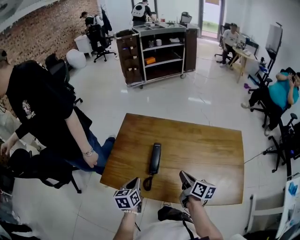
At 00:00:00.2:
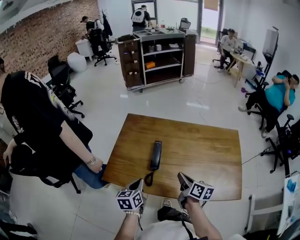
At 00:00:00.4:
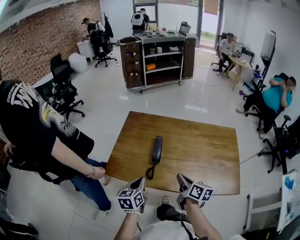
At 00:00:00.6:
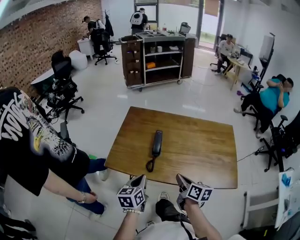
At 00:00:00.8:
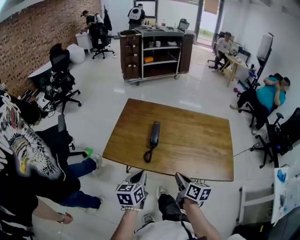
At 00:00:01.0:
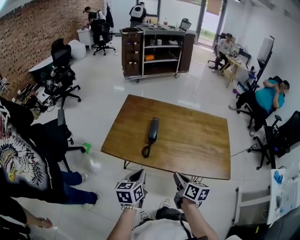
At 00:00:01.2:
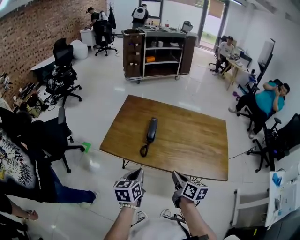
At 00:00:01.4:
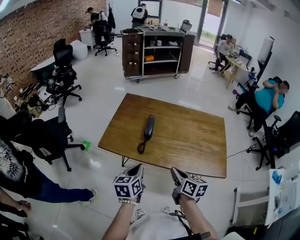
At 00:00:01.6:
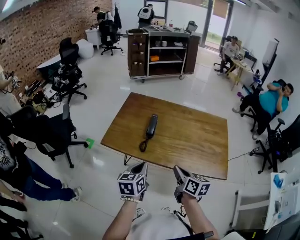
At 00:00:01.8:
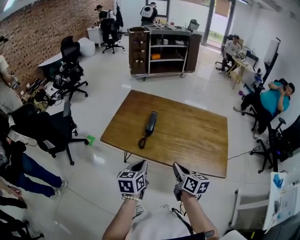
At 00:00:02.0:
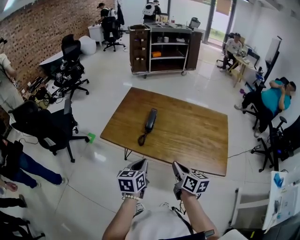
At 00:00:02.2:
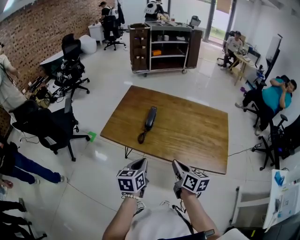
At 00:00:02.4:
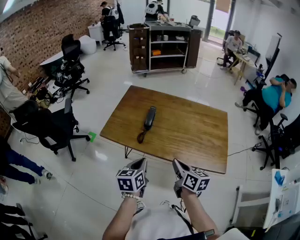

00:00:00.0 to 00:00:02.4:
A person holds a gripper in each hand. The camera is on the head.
00:00:00.0 to 00:00:01.2: Both grippers move backward, about 20 cm.
00:00:01.2 to 00:00:02.4: The left gripper shifts some 5 cm to the right.

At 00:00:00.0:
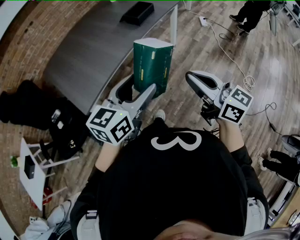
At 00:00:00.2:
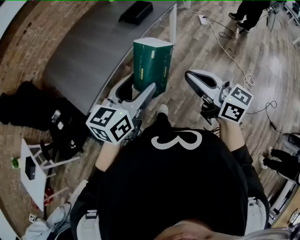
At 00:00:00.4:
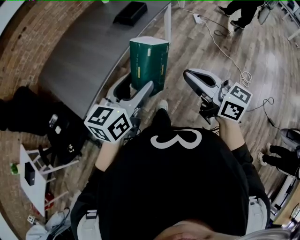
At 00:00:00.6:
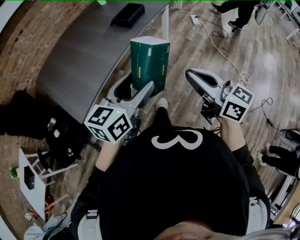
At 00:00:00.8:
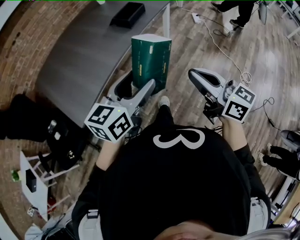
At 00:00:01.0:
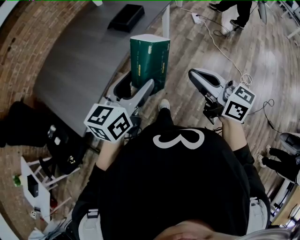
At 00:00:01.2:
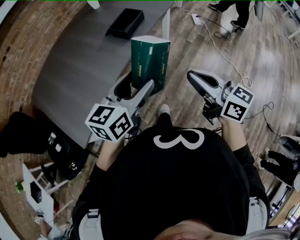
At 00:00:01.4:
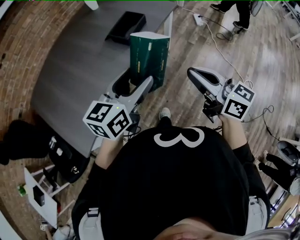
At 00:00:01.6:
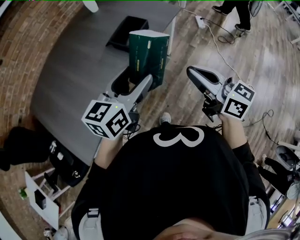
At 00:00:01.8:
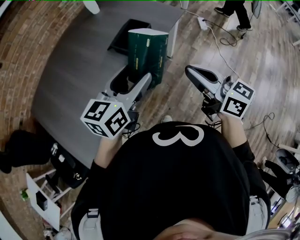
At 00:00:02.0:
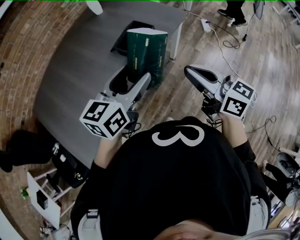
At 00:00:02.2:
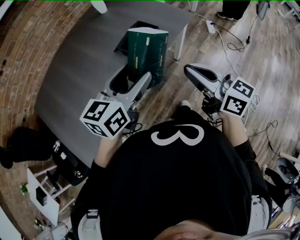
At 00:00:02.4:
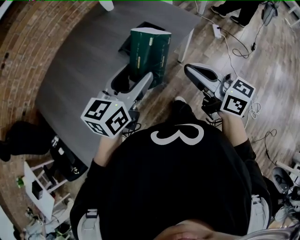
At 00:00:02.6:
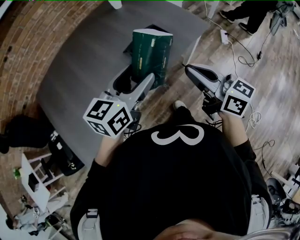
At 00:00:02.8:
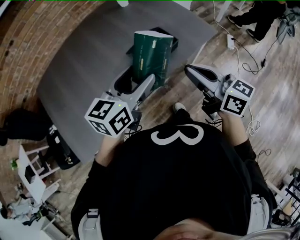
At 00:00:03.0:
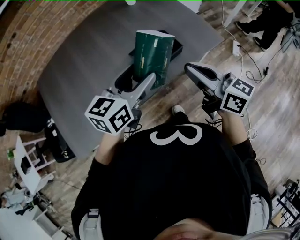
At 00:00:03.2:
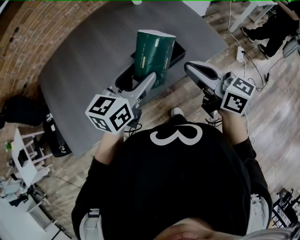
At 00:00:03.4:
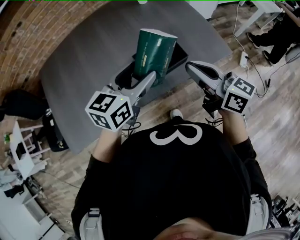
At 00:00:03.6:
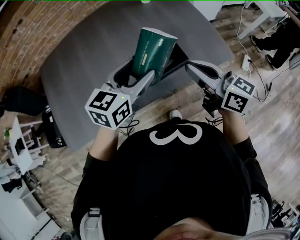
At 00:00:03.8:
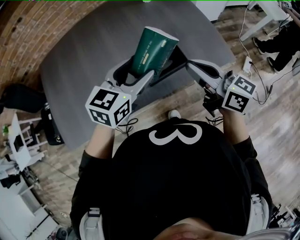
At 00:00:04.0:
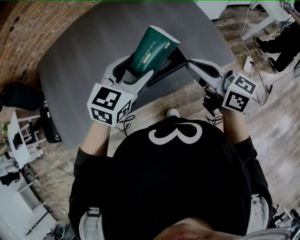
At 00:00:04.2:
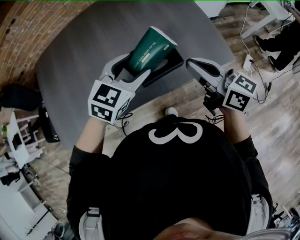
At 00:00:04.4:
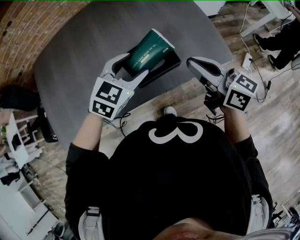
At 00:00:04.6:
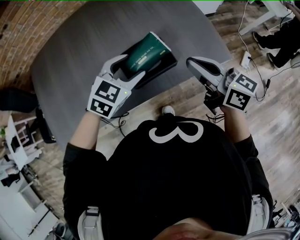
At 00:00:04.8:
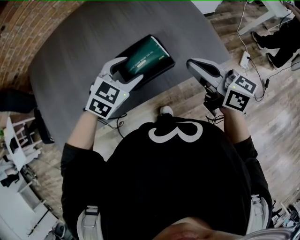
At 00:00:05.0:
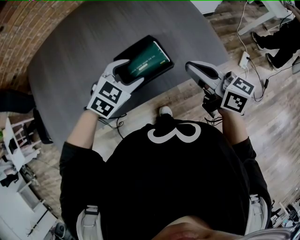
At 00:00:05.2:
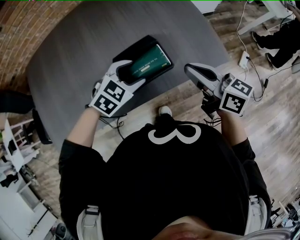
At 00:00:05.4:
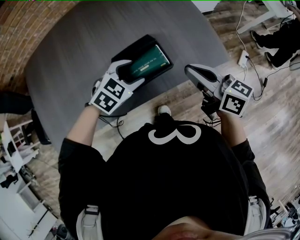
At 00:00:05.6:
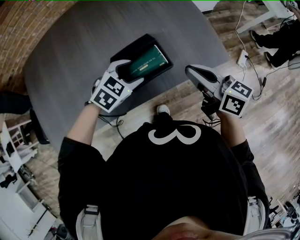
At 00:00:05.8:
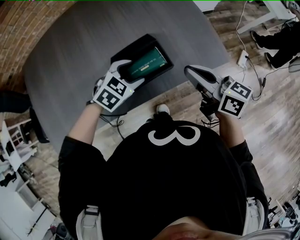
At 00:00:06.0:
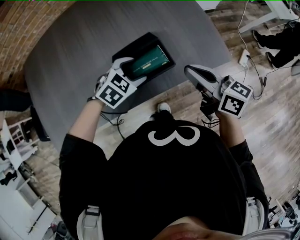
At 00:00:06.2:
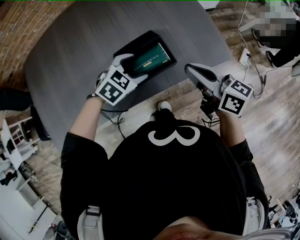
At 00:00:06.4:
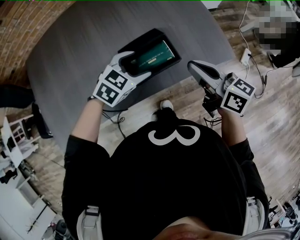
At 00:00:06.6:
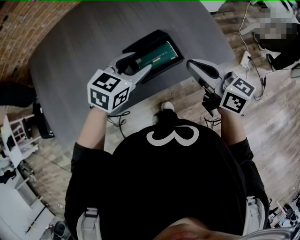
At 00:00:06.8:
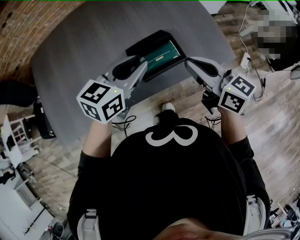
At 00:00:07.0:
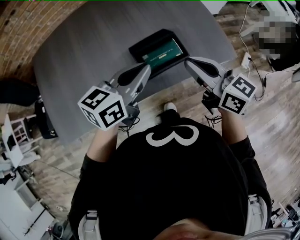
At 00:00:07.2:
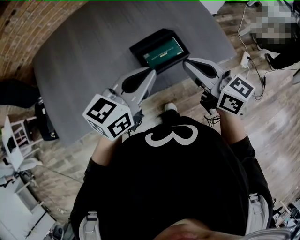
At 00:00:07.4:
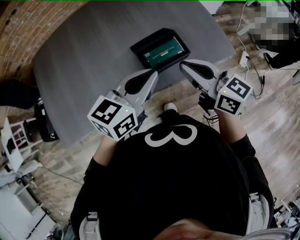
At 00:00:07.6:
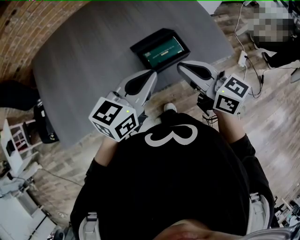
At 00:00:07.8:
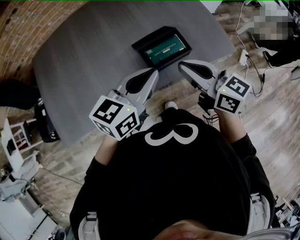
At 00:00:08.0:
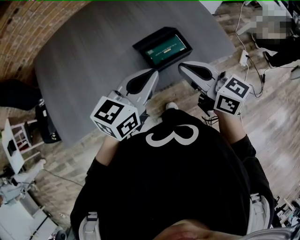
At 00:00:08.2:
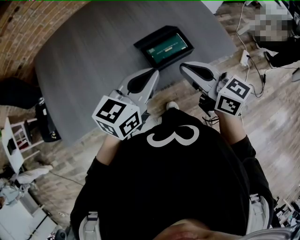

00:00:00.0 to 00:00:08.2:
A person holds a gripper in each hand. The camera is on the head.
00:00:00.0 to 00:00:01.6: Both grippers move forward, roughly 30 cm.
00:00:01.6 to 00:00:03.2: The grippers both shift forward by about 20 cm. The right gripper turns by roughly 30 degrees. Meanwhile the left gripper turns by some 20 degrees.
00:00:03.2 to 00:00:05.0: The left gripper heads downward and forward, covering roughly 15 cm, and turns by approximately 40 degrees. The right gripper goes some 10 cm forward, downward and to the right.
00:00:05.0 to 00:00:06.6: The left gripper rotates some 20 degrees.
00:00:06.6 to 00:00:08.2: The right gripper travels to the left and backward by roughly 10 cm, while the left gripper heads backward and upward, covering roughly 10 cm, changes its angle by approximately 20 degrees, and closes its fingers.

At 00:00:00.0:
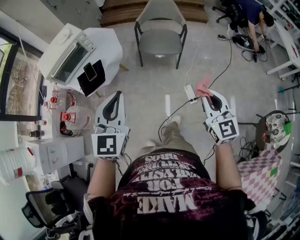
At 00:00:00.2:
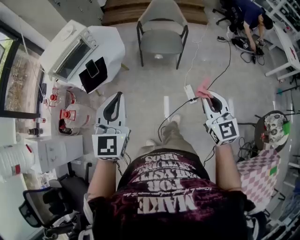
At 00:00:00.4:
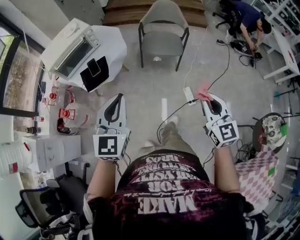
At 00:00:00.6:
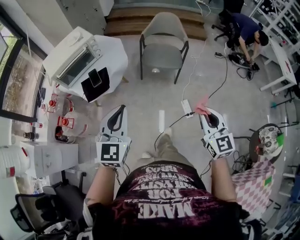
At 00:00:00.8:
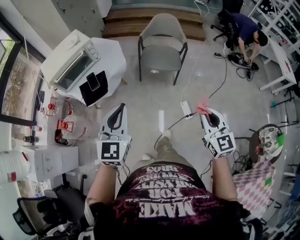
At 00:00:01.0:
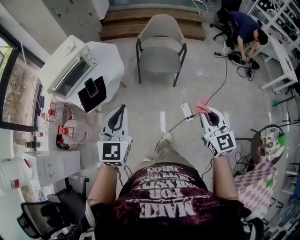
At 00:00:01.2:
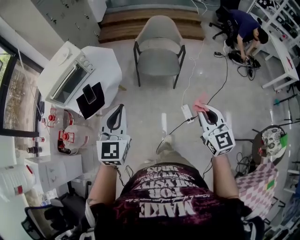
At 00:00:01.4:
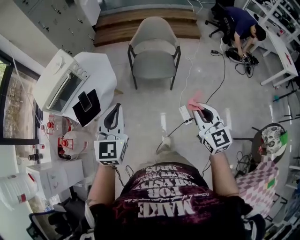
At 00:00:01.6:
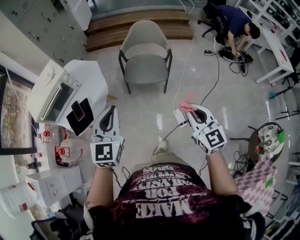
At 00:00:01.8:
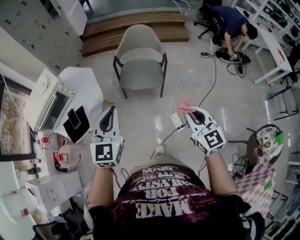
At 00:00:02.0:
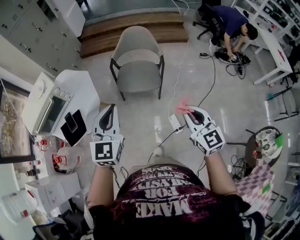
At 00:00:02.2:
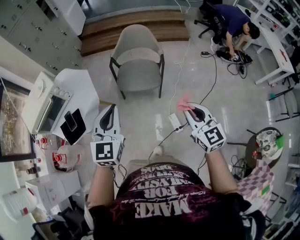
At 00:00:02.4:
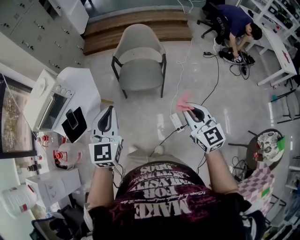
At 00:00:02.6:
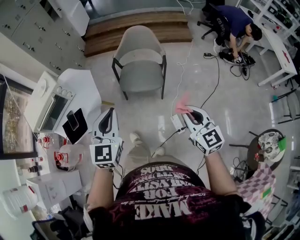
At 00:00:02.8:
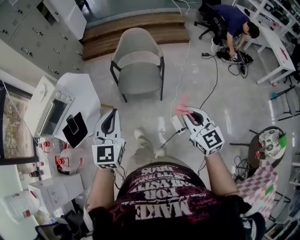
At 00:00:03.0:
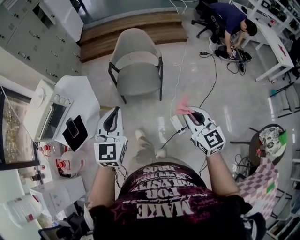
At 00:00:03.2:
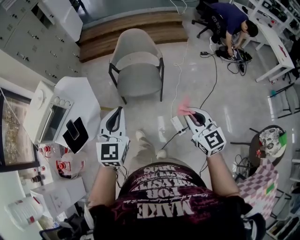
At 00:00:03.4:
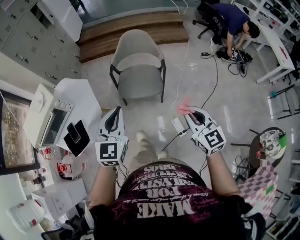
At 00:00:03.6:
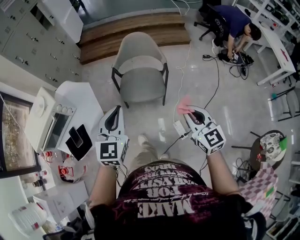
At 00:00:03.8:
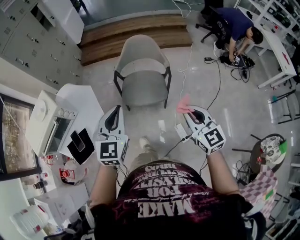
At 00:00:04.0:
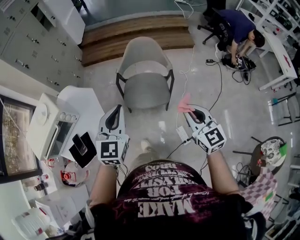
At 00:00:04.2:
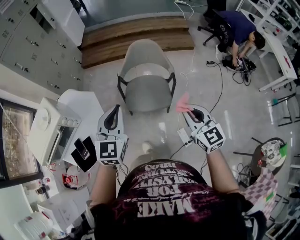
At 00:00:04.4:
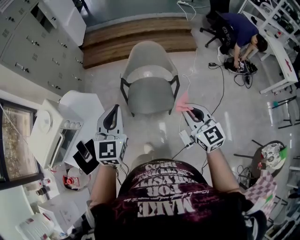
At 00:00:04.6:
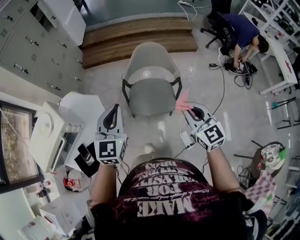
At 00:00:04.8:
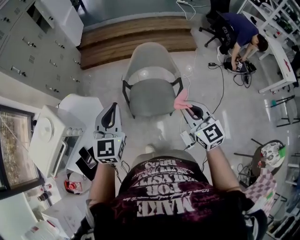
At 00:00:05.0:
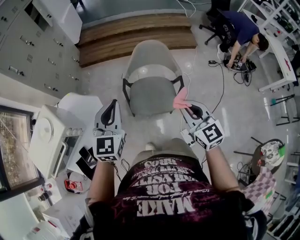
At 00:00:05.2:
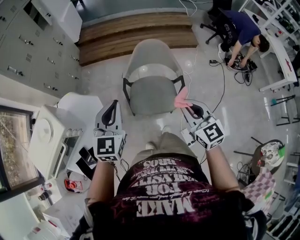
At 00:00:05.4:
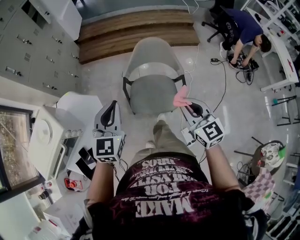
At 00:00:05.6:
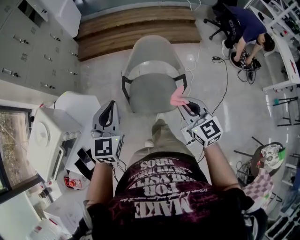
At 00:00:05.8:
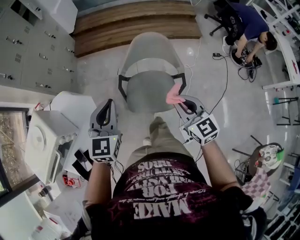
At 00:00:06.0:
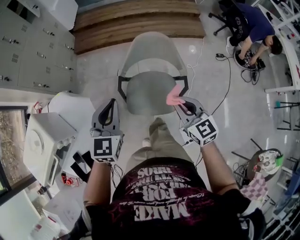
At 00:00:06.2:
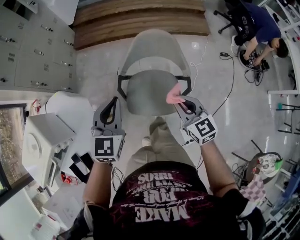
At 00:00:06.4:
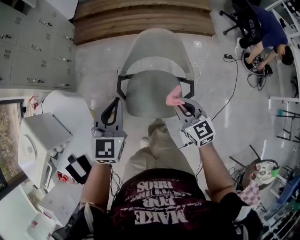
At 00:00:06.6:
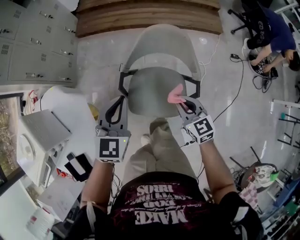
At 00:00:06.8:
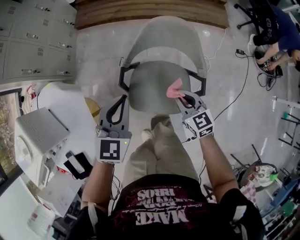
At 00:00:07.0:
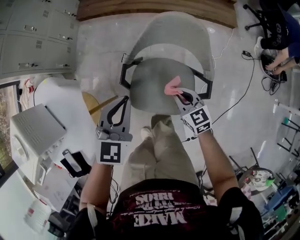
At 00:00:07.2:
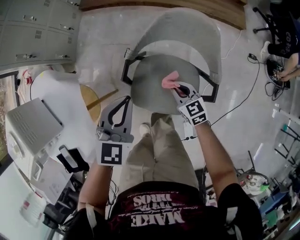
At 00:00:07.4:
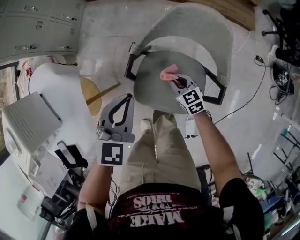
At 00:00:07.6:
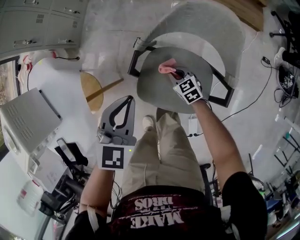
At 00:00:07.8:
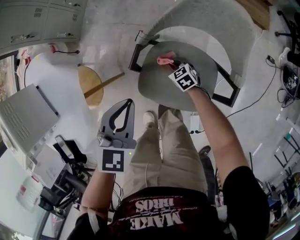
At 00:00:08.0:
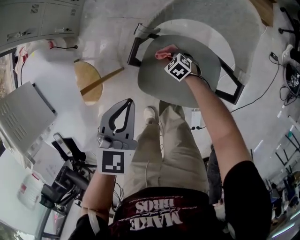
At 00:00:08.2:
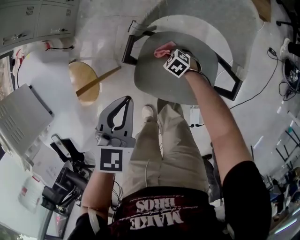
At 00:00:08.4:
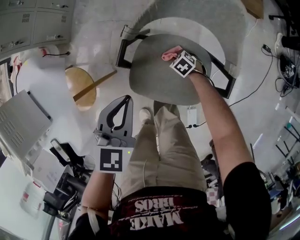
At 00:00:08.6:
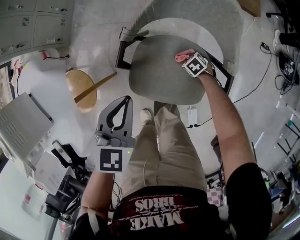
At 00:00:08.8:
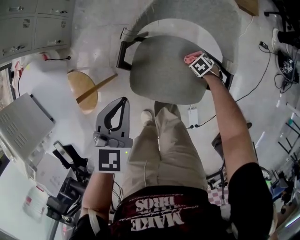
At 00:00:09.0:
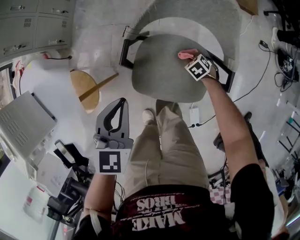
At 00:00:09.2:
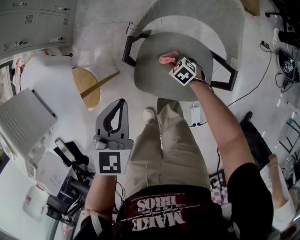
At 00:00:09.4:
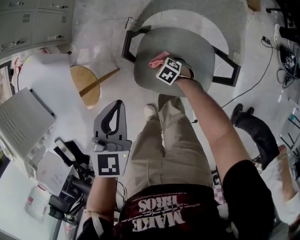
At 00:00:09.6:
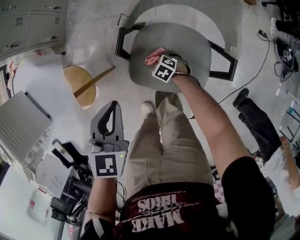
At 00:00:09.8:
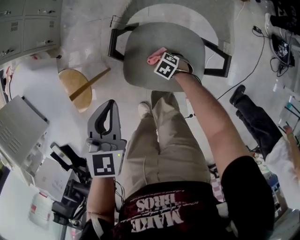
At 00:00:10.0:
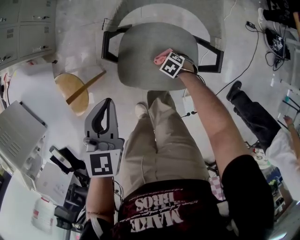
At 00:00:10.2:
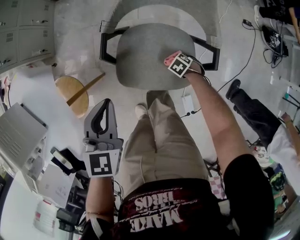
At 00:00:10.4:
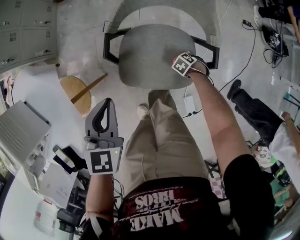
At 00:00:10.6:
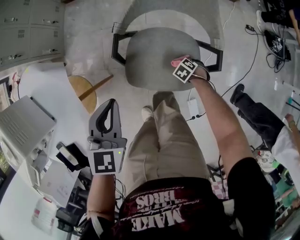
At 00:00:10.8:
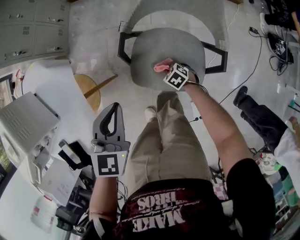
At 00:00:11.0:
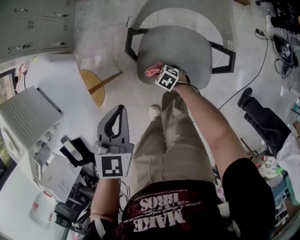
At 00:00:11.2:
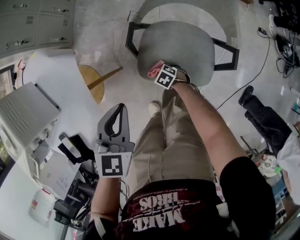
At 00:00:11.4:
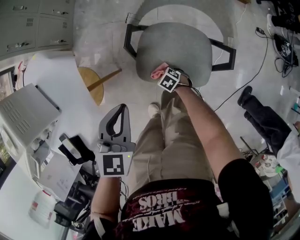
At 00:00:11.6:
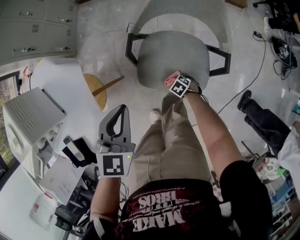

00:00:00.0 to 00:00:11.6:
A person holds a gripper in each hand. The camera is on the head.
00:00:00.0 to 00:00:01.4: Both grippers move forward, about 10 cm.
00:00:01.4 to 00:00:02.8: The two grippers go some 15 cm to the right and forward.
00:00:02.8 to 00:00:04.4: Both grippers move forward, some 25 cm.
00:00:04.4 to 00:00:05.8: Both grippers move forward and downward, some 15 cm.
00:00:05.8 to 00:00:07.2: The left gripper moves downward and forward, roughly 25 cm. The right gripper goes some 40 cm downward and forward, and changes its angle by some 20 degrees.
00:00:07.2 to 00:00:08.8: The right gripper goes about 25 cm downward, and tilts its fingers about 50 degrees downward; the left gripper travels downward by some 5 cm.
00:00:10.2 to 00:00:11.6: The left gripper moves some 5 cm.

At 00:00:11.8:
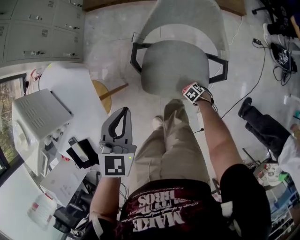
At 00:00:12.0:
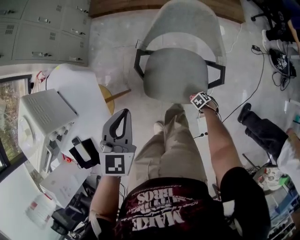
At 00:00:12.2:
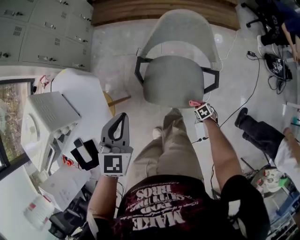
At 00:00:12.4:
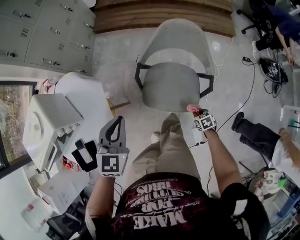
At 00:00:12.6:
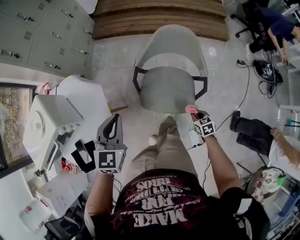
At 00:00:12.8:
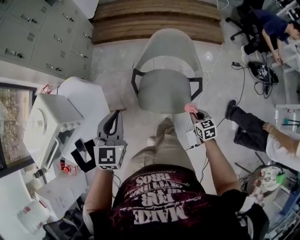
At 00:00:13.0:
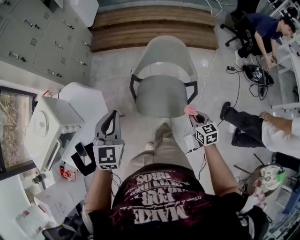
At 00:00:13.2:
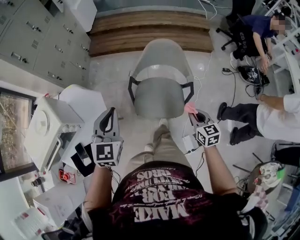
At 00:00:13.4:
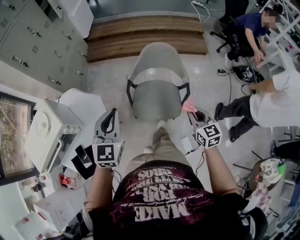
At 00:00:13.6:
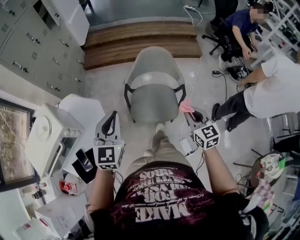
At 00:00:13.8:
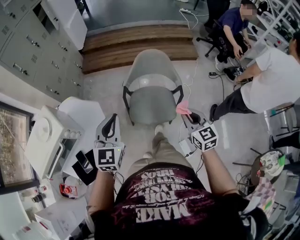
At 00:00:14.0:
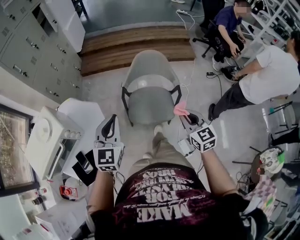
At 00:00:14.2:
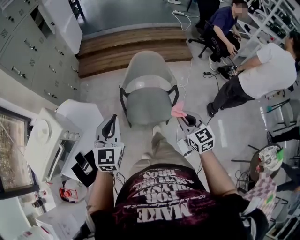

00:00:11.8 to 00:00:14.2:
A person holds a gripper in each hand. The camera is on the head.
00:00:11.8 to 00:00:13.0: The right gripper moves upward, some 40 cm, and tips its fingers upward by roughly 40 degrees; the left gripper shifts roughly 15 cm upward.
00:00:13.0 to 00:00:14.2: The left gripper is displaced backward and upward by some 10 cm, while the right gripper moves upward and backward, some 20 cm.
